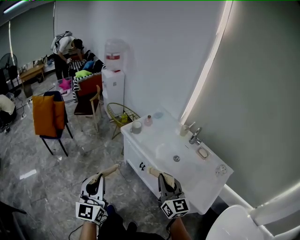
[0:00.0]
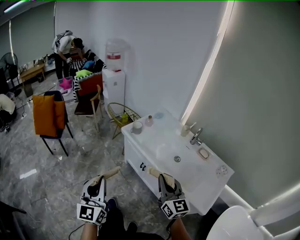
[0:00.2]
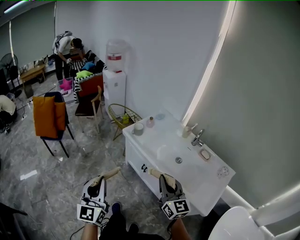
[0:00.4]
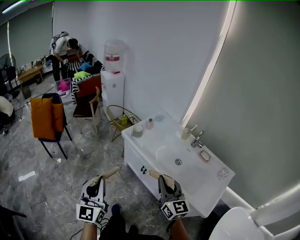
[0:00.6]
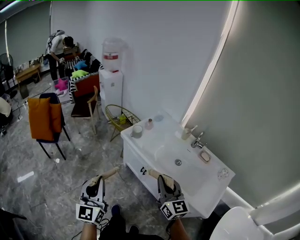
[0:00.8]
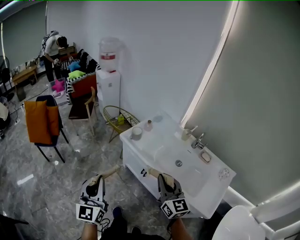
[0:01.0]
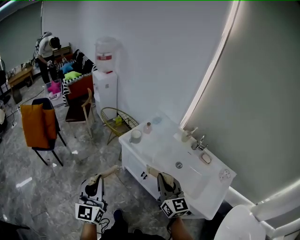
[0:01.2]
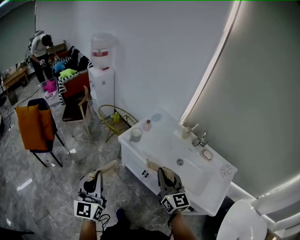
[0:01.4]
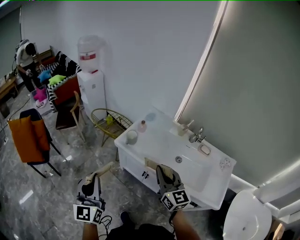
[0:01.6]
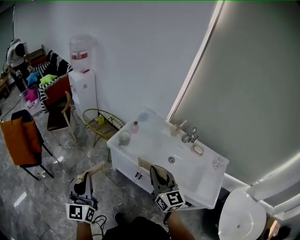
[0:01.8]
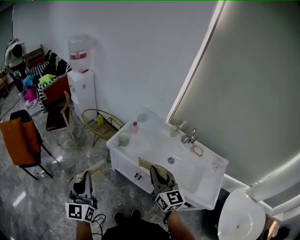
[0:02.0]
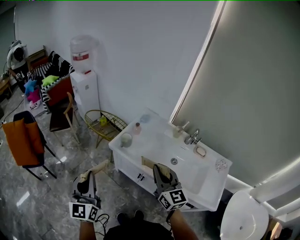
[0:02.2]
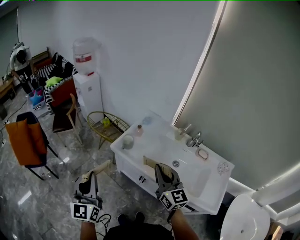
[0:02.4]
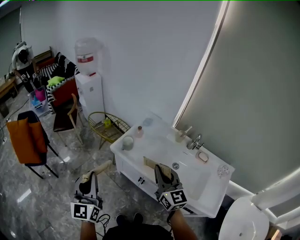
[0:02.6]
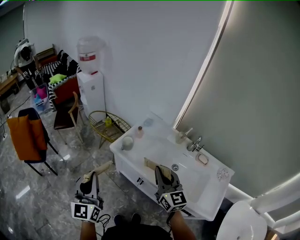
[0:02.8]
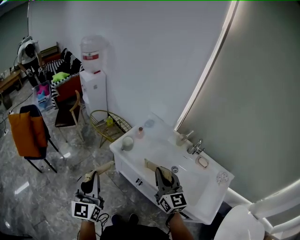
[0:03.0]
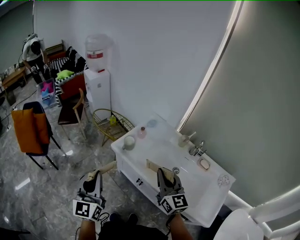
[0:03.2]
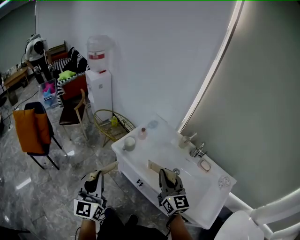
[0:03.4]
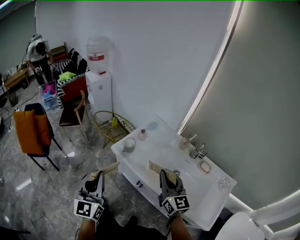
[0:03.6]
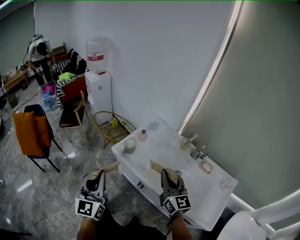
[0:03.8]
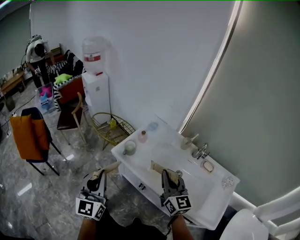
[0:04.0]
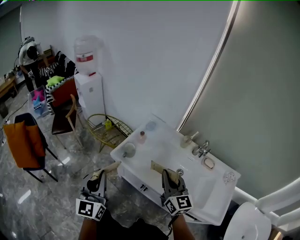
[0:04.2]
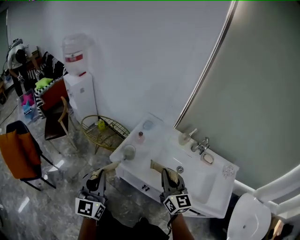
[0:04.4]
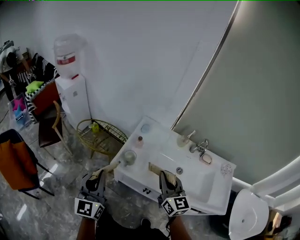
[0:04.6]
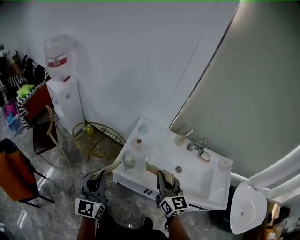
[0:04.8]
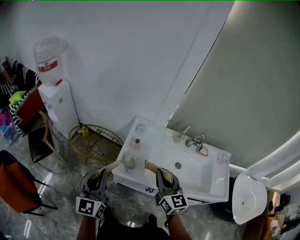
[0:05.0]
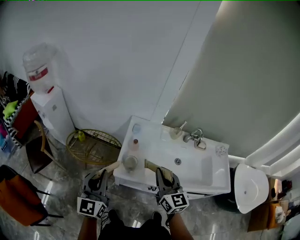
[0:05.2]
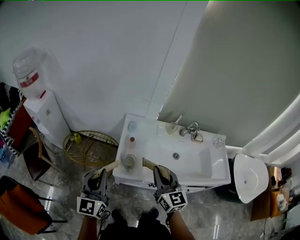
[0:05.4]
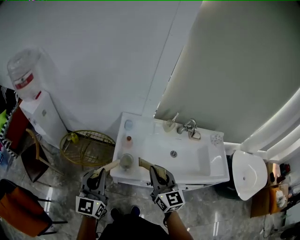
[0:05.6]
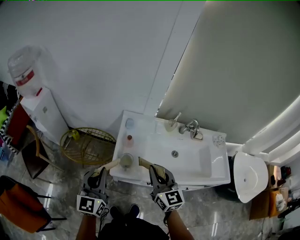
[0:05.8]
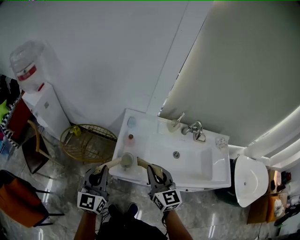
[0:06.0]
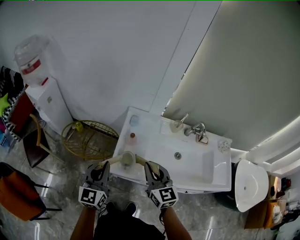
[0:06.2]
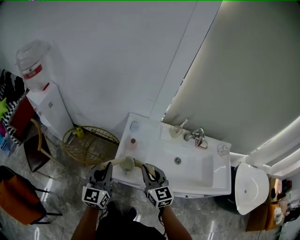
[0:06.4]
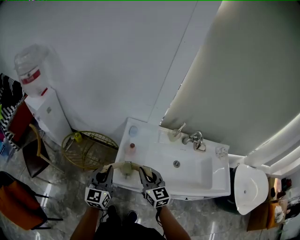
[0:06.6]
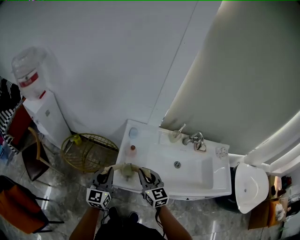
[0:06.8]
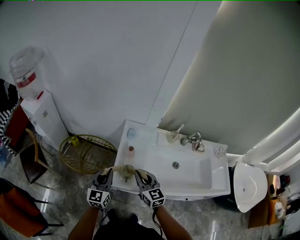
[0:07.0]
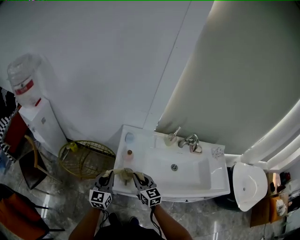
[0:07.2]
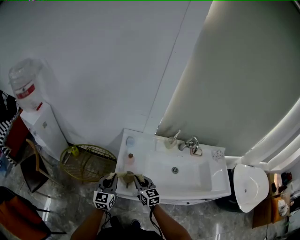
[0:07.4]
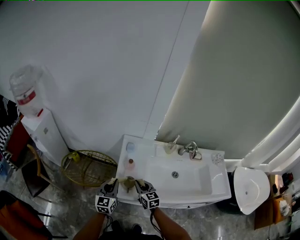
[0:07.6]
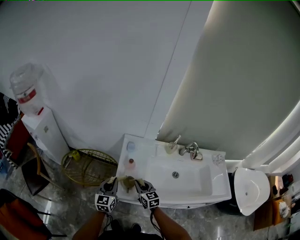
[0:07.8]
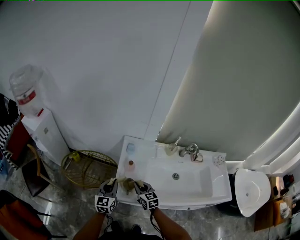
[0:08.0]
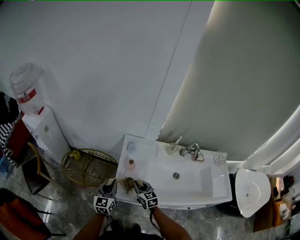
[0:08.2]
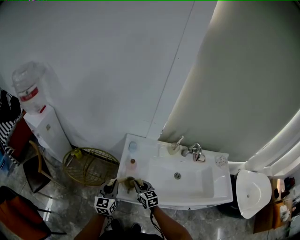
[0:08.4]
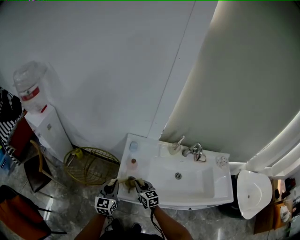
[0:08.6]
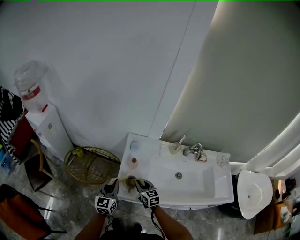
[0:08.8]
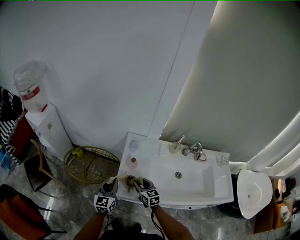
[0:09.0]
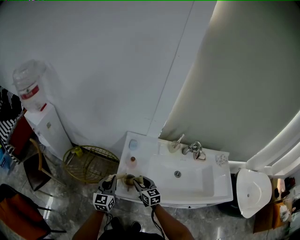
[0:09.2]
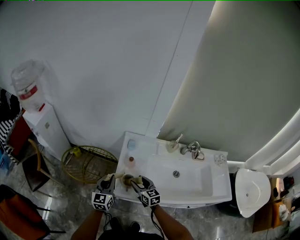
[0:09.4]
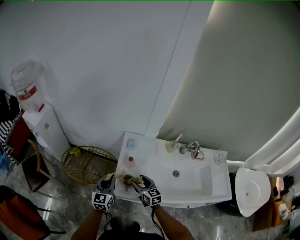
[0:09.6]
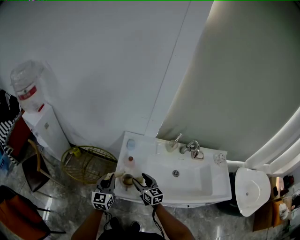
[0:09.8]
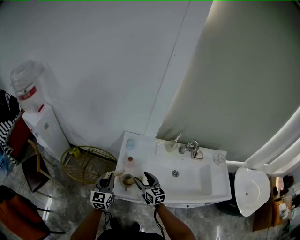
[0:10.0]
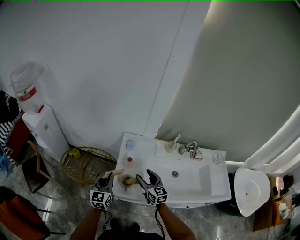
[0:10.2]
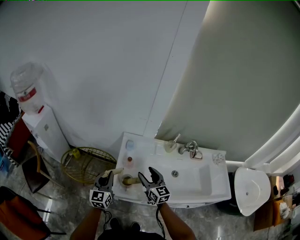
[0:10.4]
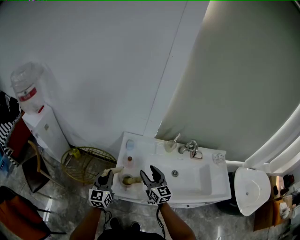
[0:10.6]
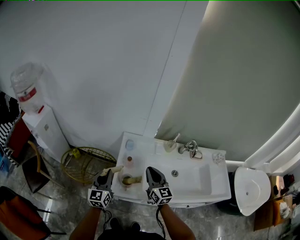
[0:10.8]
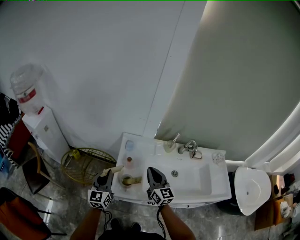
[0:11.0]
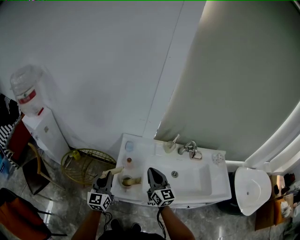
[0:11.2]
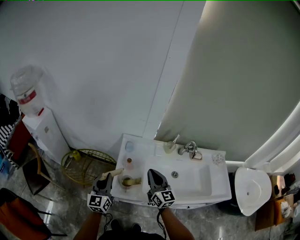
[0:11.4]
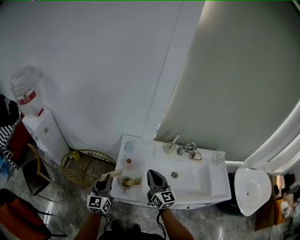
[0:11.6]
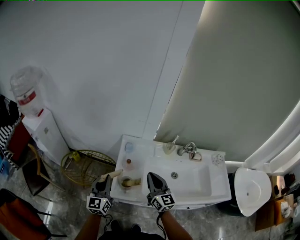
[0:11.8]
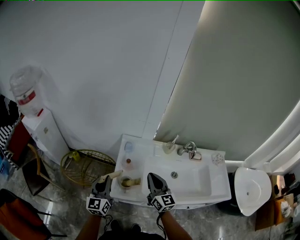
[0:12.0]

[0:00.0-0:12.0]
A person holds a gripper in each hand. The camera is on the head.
0:00.0 to 0:01.6: Both grippers travel together forward, roughly 20 cm.
0:01.6 to 0:03.0: The two grippers go some 10 cm forward and to the right.
0:03.0 to 0:04.4: The right gripper travels forward by roughly 10 cm; the left gripper goes some 15 cm forward.
0:04.4 to 0:06.0: The right gripper moves to the left and forward, approximately 15 cm, while the left gripper goes approximately 20 cm forward, and turns by roughly 30 degrees.
0:06.0 to 0:07.6: Both grippers move downward and forward, about 15 cm.
0:07.6 to 0:09.0: The right gripper opens up.
0:09.0 to 0:10.4: The right gripper moves upward and to the right, about 10 cm, and opens up.
0:10.4 to 0:12.0: The right gripper goes some 5 cm upward, and closes up.

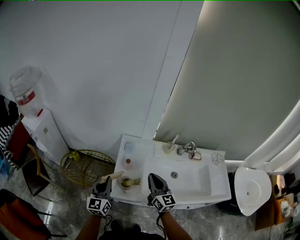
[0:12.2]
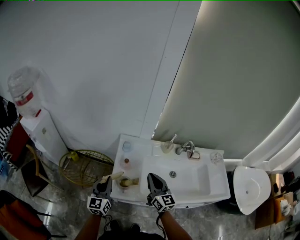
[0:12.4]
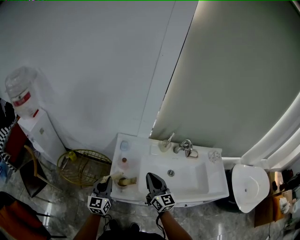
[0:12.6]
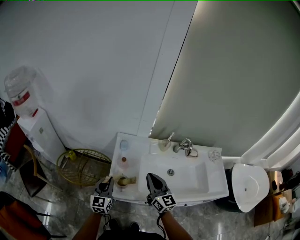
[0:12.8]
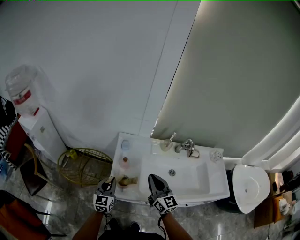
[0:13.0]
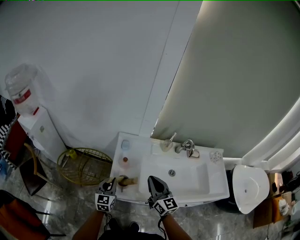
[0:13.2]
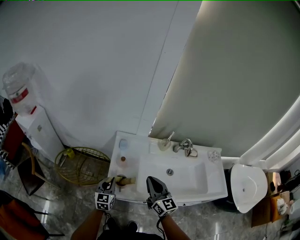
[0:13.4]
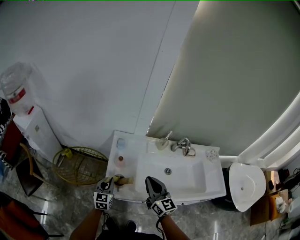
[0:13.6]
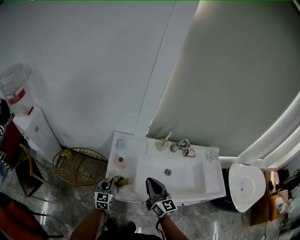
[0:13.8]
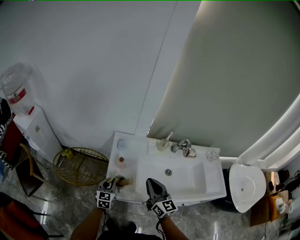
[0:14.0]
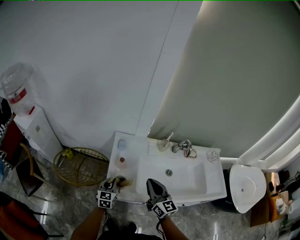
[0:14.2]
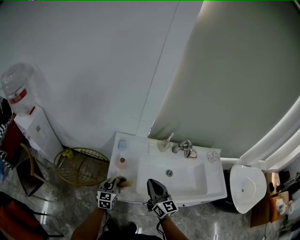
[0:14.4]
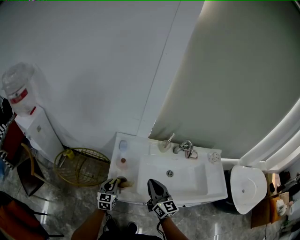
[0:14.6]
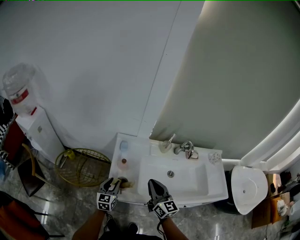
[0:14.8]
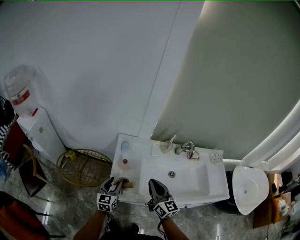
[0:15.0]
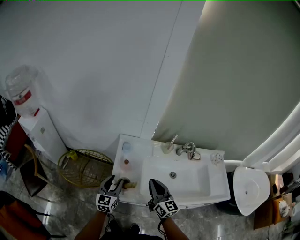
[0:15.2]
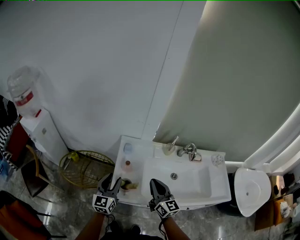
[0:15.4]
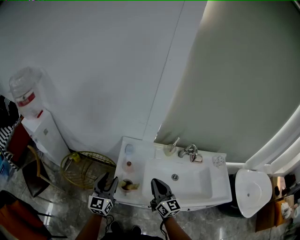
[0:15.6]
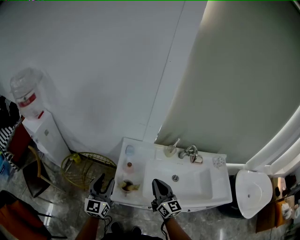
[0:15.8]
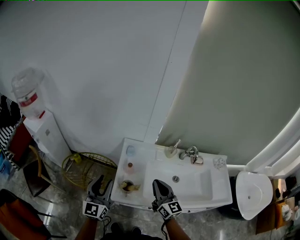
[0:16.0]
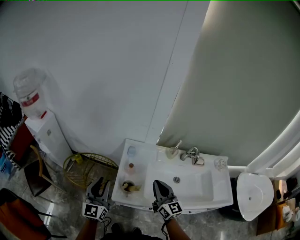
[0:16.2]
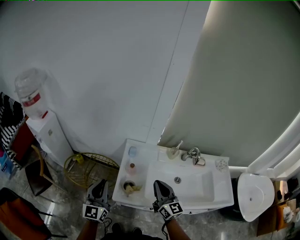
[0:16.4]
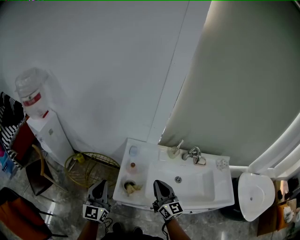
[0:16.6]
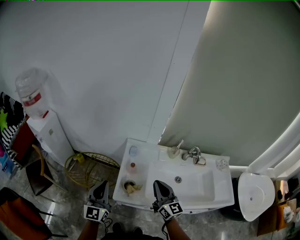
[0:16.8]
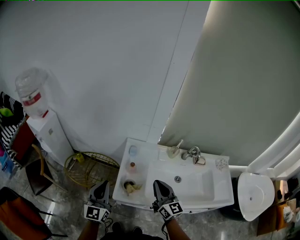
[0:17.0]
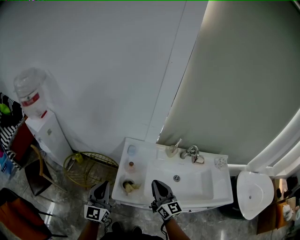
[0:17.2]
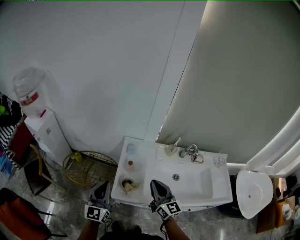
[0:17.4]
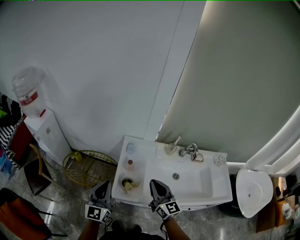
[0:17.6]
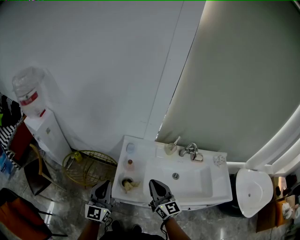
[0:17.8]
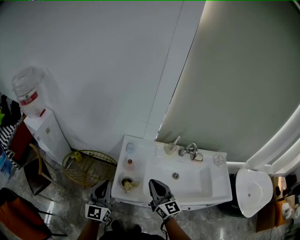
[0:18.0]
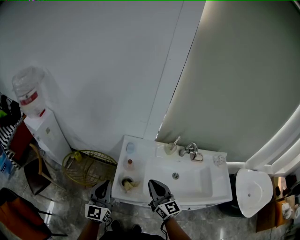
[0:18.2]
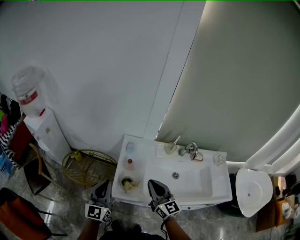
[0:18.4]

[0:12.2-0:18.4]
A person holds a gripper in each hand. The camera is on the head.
0:12.2 to 0:13.8: The left gripper shifts roughly 15 cm downward and to the right, and changes its angle by about 20 degrees.
0:13.8 to 0:15.4: The left gripper travels upward by approximately 10 cm, and opens.
0:15.4 to 0:16.8: The left gripper heads upward, to the left and backward, covering some 10 cm, and closes its fingers.
0:16.8 to 0:18.4: The grippers stay close to where they were, moving slightly.

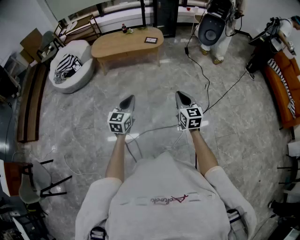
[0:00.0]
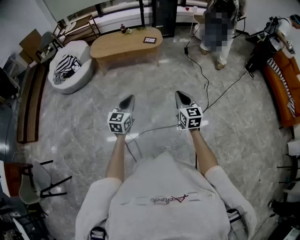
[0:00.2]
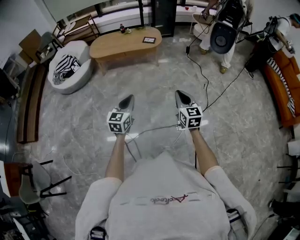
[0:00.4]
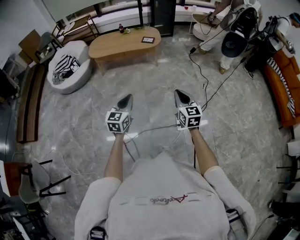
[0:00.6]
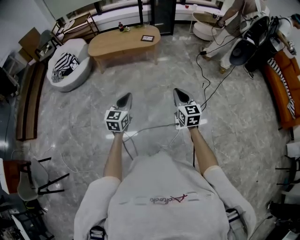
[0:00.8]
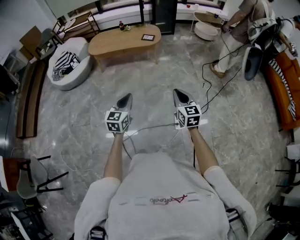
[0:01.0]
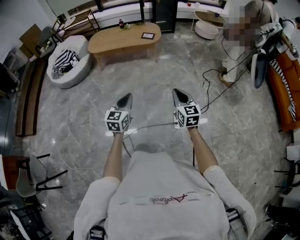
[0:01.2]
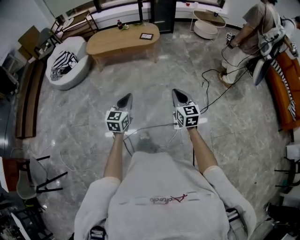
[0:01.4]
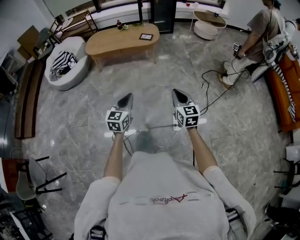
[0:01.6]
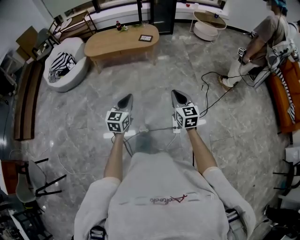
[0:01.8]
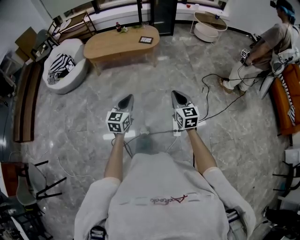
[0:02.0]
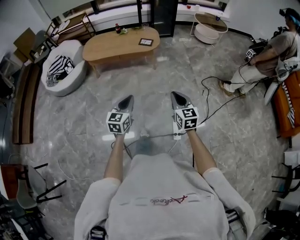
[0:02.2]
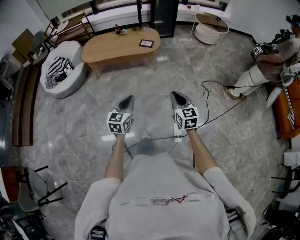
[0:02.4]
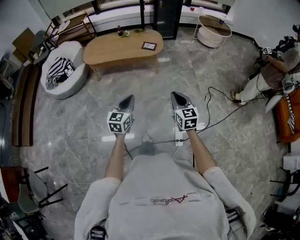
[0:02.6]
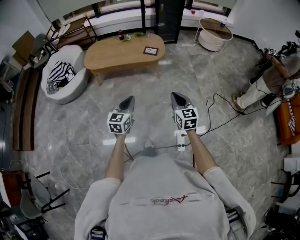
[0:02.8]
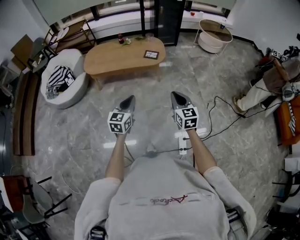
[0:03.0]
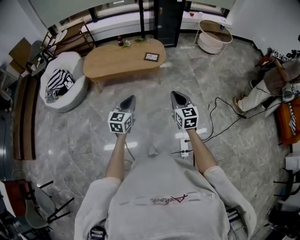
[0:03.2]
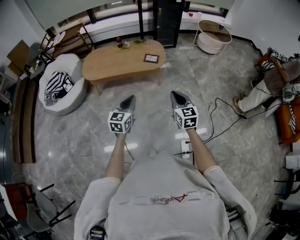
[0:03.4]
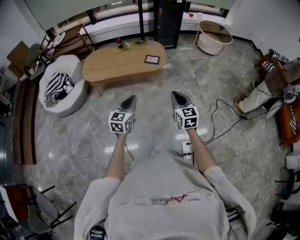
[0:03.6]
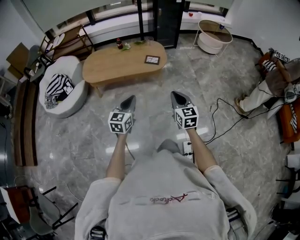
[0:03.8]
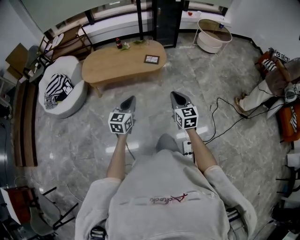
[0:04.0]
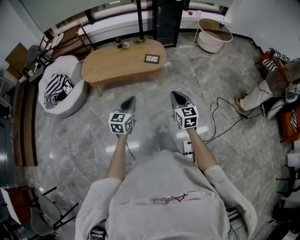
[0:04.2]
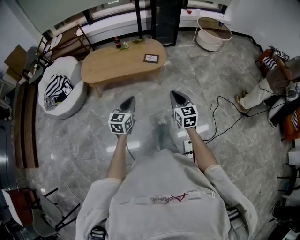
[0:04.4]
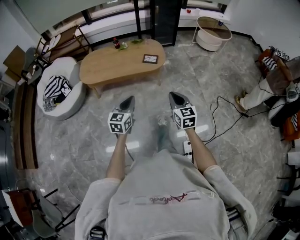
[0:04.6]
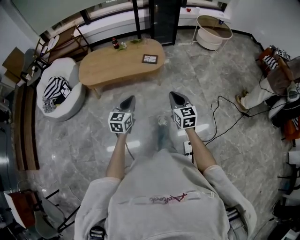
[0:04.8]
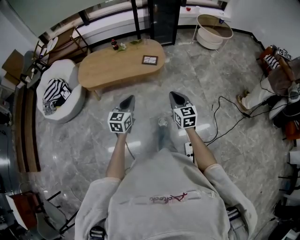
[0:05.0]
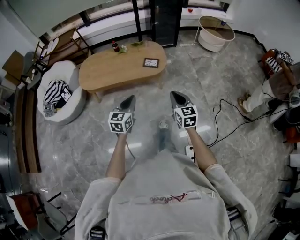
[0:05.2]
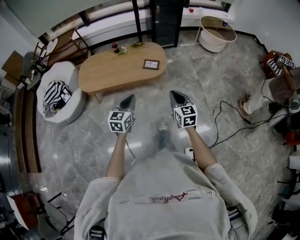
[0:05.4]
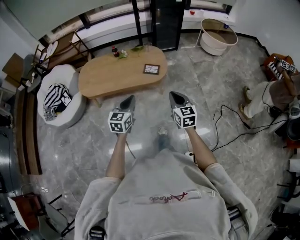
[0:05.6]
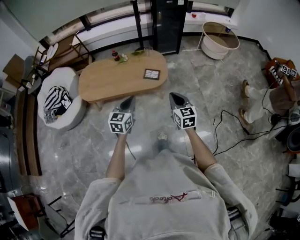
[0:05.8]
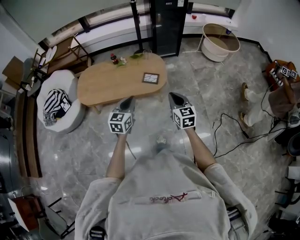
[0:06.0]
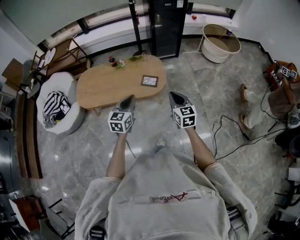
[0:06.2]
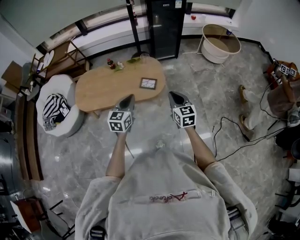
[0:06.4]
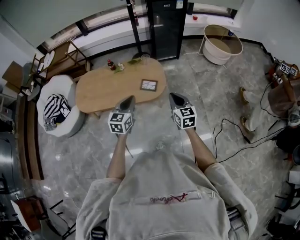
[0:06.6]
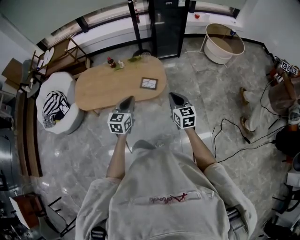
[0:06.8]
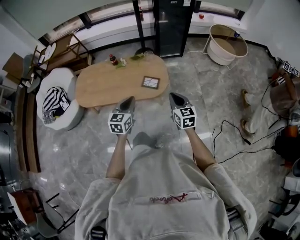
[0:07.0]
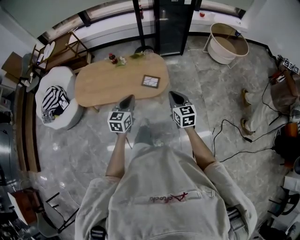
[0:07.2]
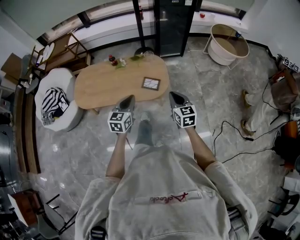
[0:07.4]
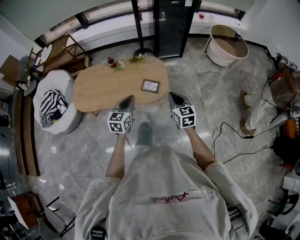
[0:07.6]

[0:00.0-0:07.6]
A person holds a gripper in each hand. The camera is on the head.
0:00.0 to 0:01.6: The left gripper travels to the right by some 10 cm; the right gripper moves to the right and forward, approximately 10 cm.
0:01.6 to 0:03.0: Both grippers move forward, some 30 cm.
0:03.0 to 0:04.6: Both grippers move forward, some 10 cm.
0:04.6 to 0:06.0: The grippers both shift forward by roughly 25 cm.
0:06.0 to 0:07.6: Both grippers move forward, roughly 15 cm.
